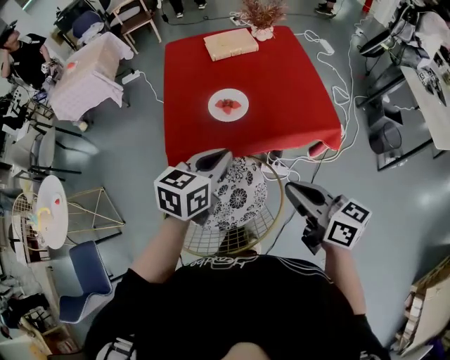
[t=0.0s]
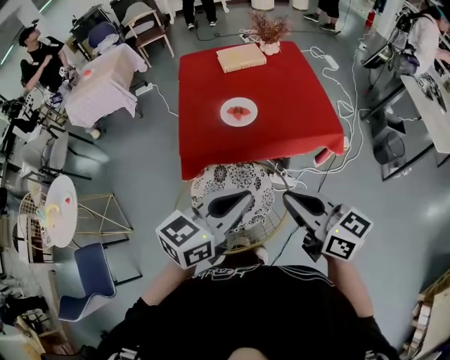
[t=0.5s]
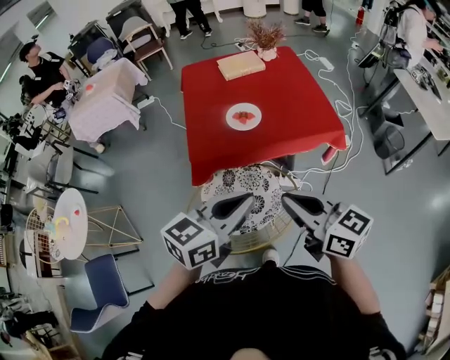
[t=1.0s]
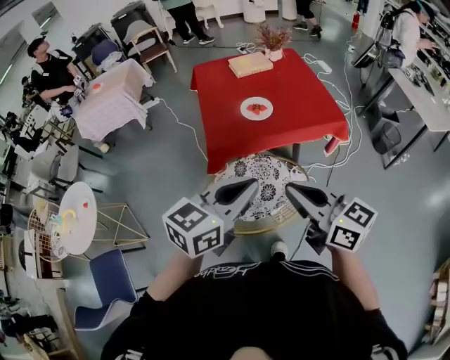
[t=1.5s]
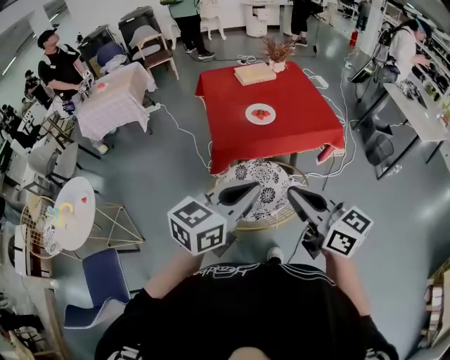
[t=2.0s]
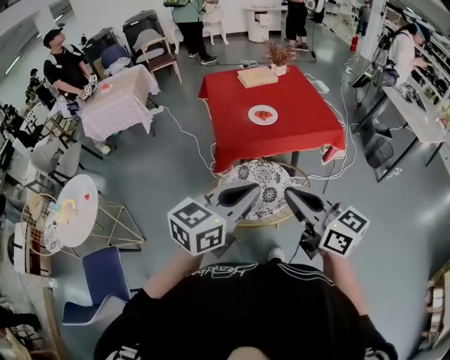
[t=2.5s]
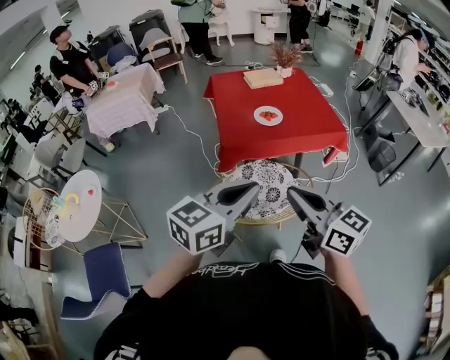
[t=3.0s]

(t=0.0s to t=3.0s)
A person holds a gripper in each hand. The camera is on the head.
t=0.0s - t=1.5s: The left gripper shifts some 25 cm backward and upward, while the right gripper shifts some 20 cm backward, to the left and upward.
t=1.5s - t=3.0s: Both grippers travel together backward, about 10 cm.

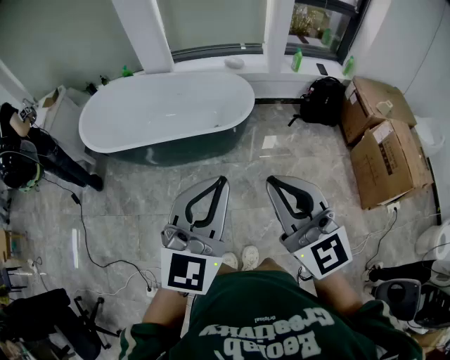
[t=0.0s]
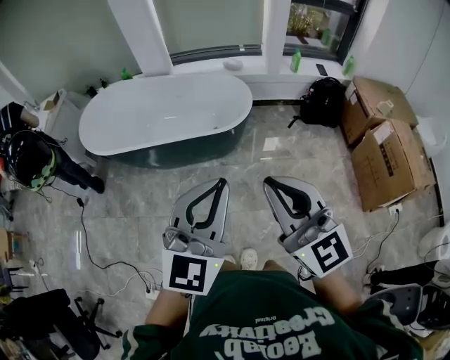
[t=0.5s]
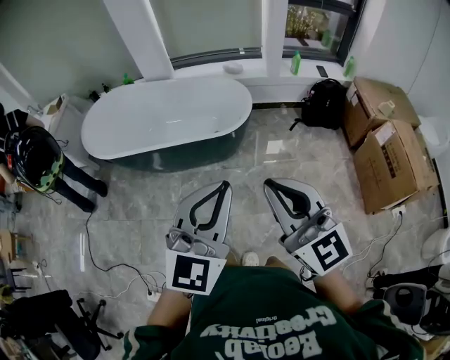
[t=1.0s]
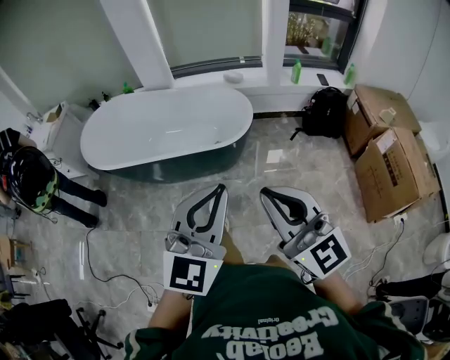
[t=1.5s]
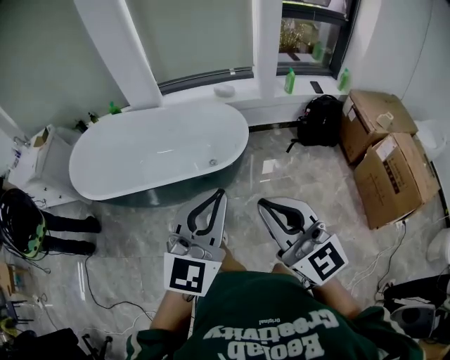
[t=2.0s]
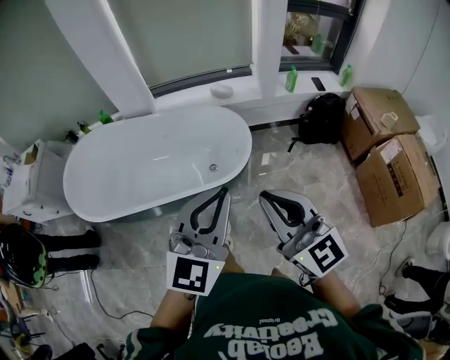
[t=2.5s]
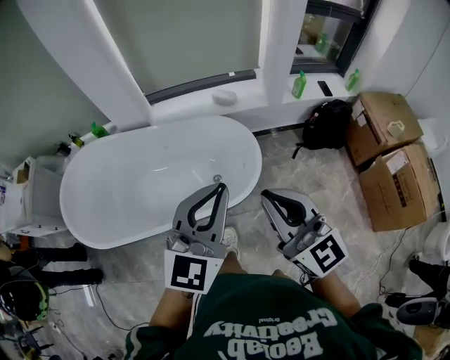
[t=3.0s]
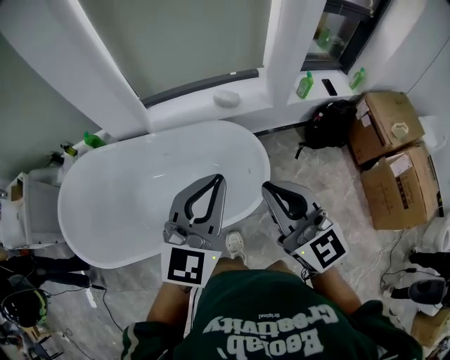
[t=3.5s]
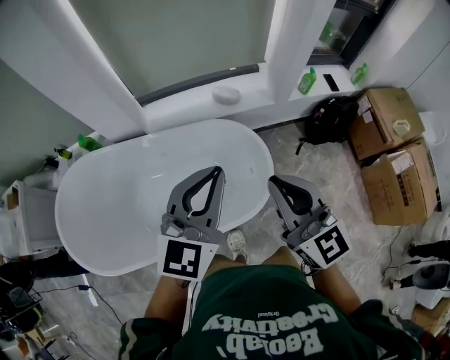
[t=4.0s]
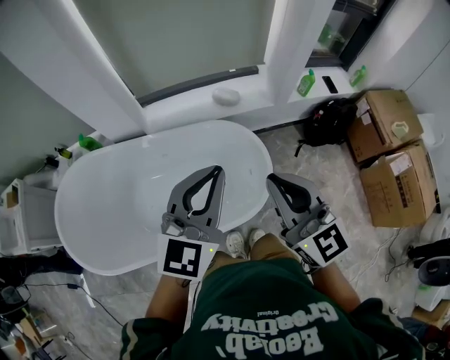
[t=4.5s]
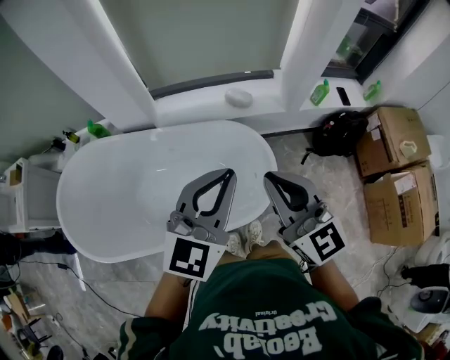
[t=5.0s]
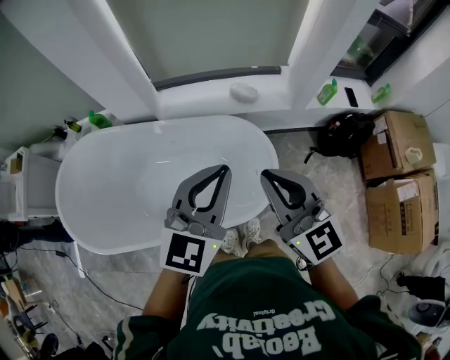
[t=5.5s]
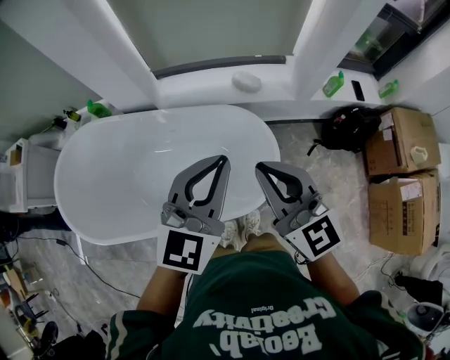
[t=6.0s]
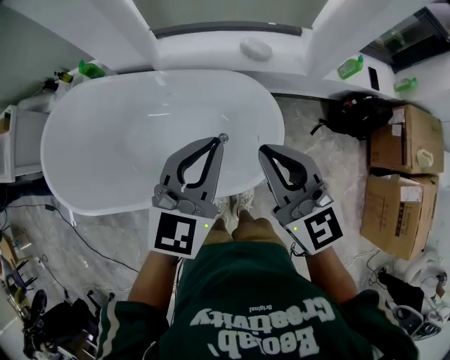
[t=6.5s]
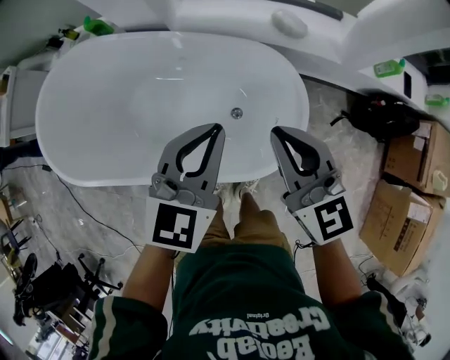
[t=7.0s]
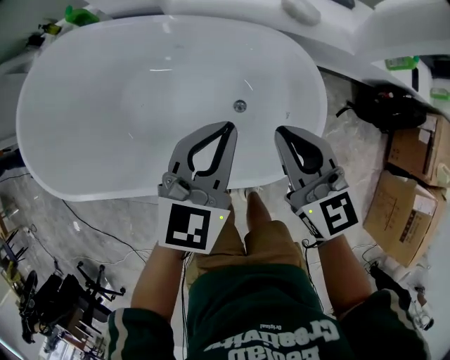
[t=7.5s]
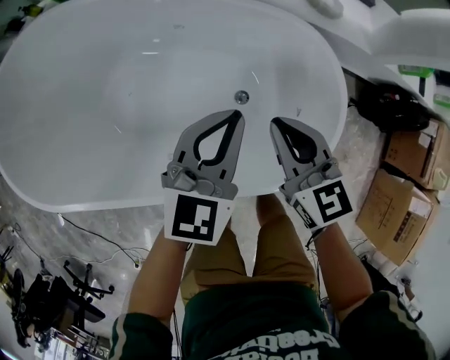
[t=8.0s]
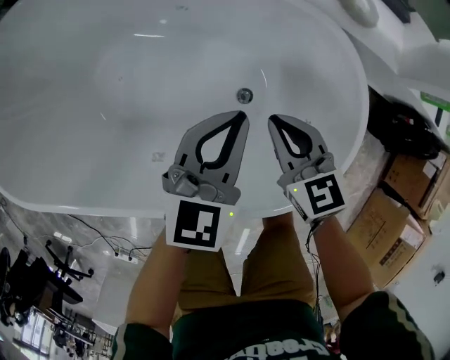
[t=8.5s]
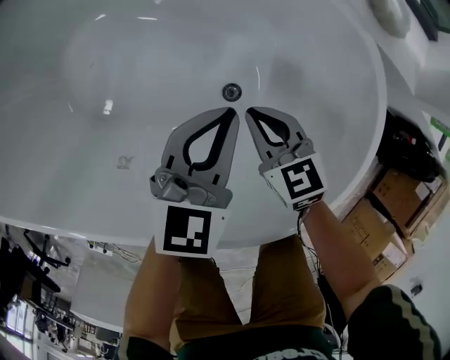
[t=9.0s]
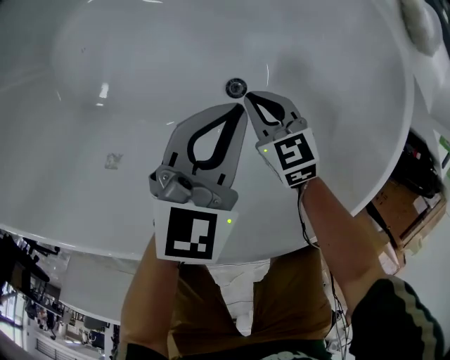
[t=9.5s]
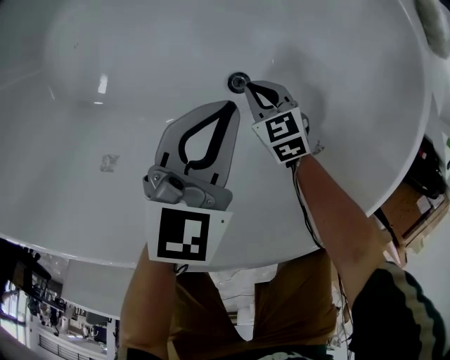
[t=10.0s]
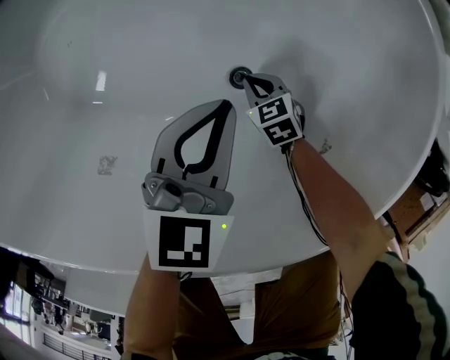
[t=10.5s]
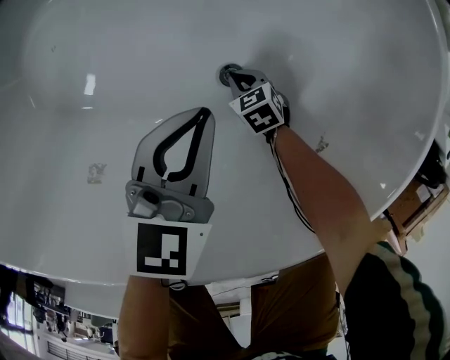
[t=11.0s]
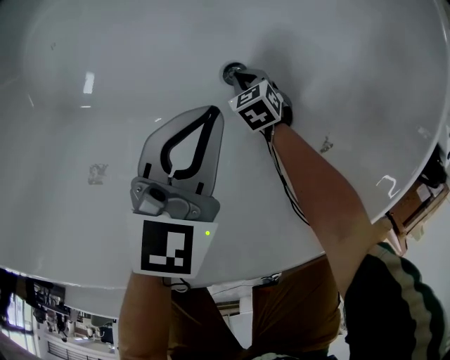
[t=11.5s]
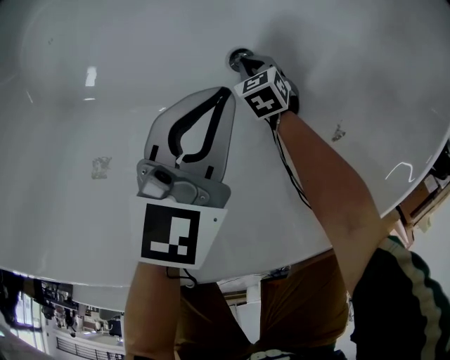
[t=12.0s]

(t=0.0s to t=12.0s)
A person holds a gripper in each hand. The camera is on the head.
t=0.0s - t=2.0s: Both grippers travel together forward and downward, roughly 15 cm.
t=2.0s - t=4.0s: The pair of grippers is taken forward, about 50 cm.
t=4.0s - t=6.0s: The right gripper goes about 5 cm forward.
t=6.0s - t=8.0s: The grippers both shift downward by about 35 cm. The right gripper changes its angle by roughly 30 degrees.
t=8.0s - t=10.0s: The right gripper is displaced downward by approximately 40 cm, and swivels roughly 40 degrees. Meanwhile the left gripper goes about 25 cm downward, and turns by about 20 degrees.
t=10.0s - t=12.0s: The right gripper travels downward by roughly 15 cm. Meanwhile the left gripper shifts roughly 5 cm downward.

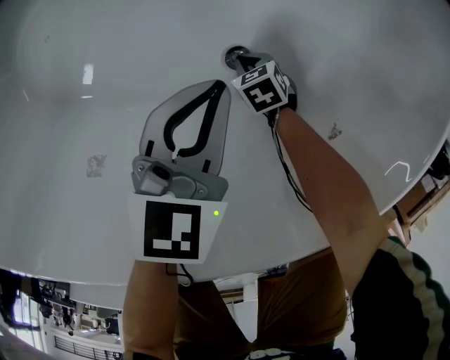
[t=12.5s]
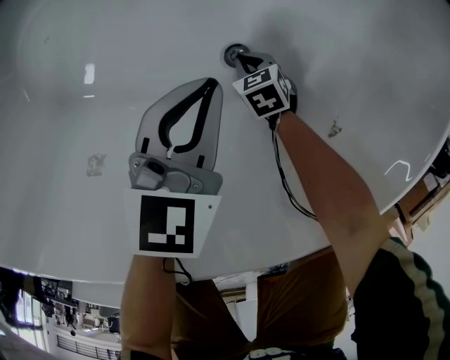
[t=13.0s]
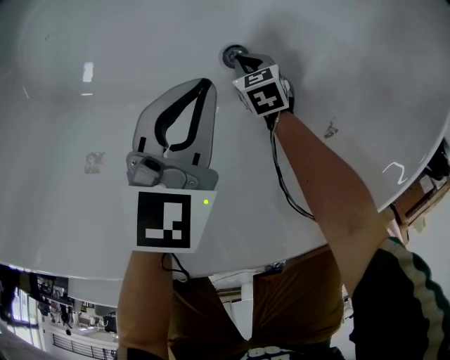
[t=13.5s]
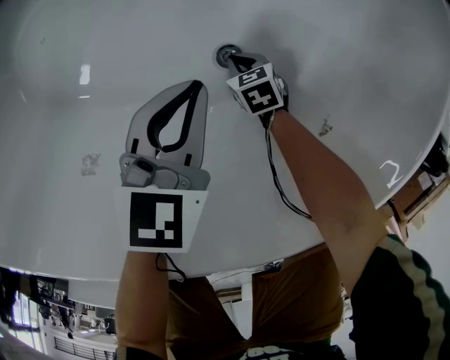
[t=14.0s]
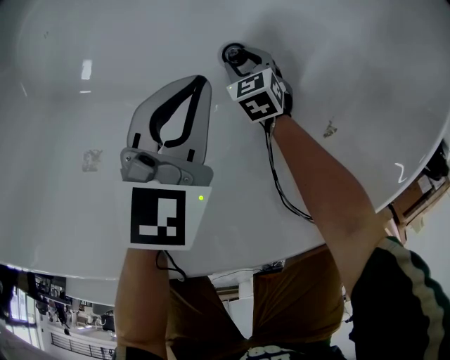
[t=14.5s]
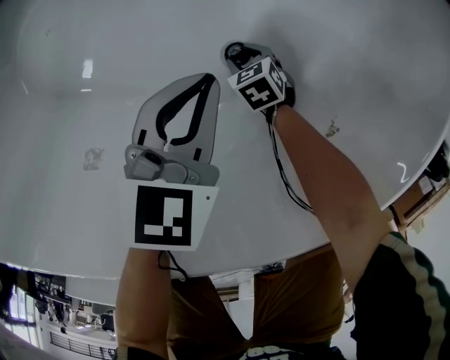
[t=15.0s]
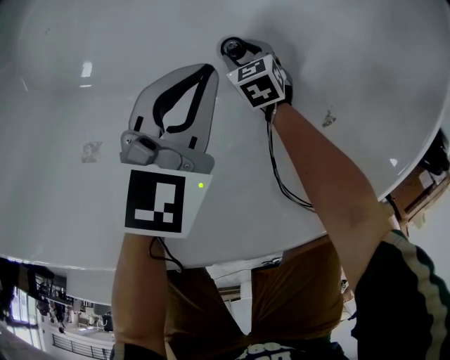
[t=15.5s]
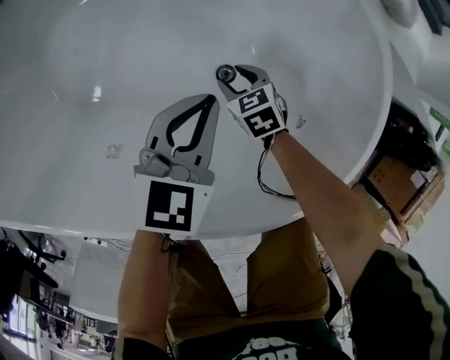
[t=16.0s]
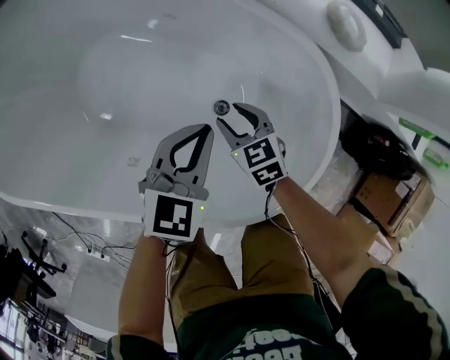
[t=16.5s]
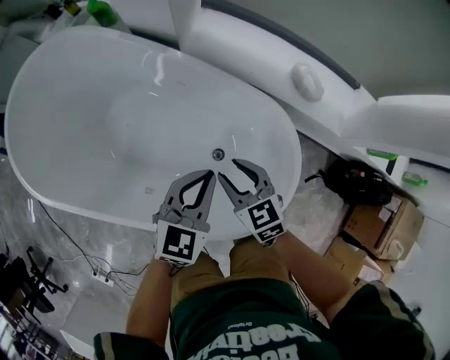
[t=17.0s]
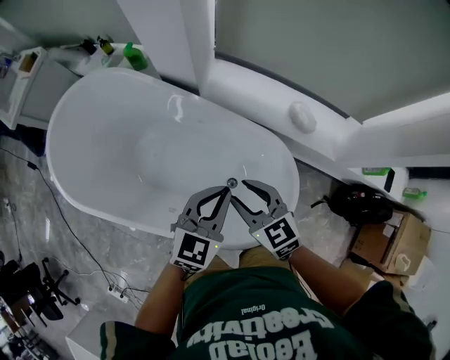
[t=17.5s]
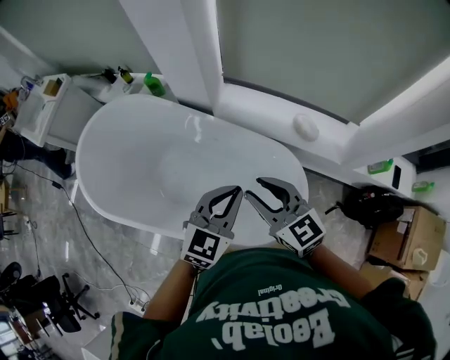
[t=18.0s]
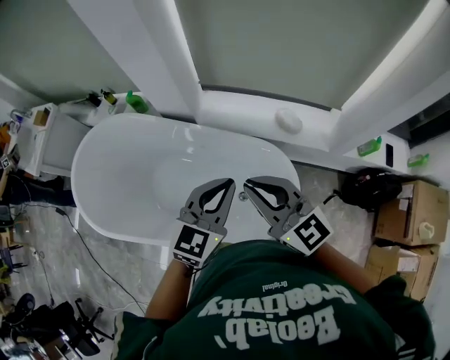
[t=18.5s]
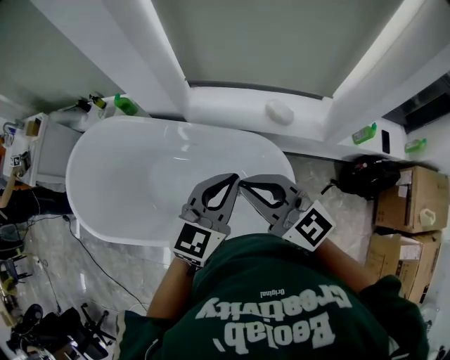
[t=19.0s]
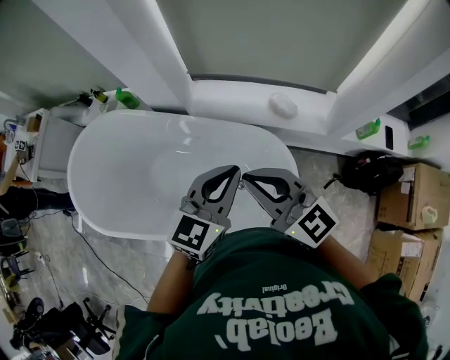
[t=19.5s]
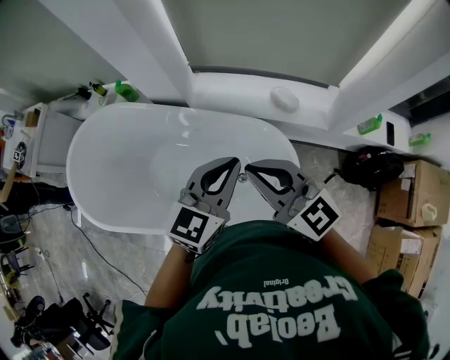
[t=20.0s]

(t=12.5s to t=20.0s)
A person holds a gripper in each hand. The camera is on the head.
t=12.5s - t=14.5s: The right gripper opens.
t=14.5s - t=16.5s: Both grippers travel together upward, some 30 cm. The right gripper turns by roughly 20 degrees.
t=16.5s - t=18.0s: The two grippers go about 50 cm upward. The right gripper points its fingers roughly 30 degrees further upward.
t=18.0s - t=20.0s: The left gripper is displaced to the right by some 5 cm; the right gripper travels upward by about 5 cm, and closes.

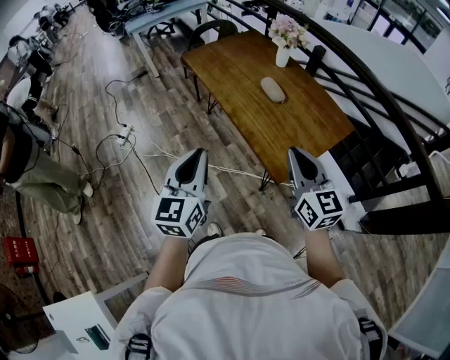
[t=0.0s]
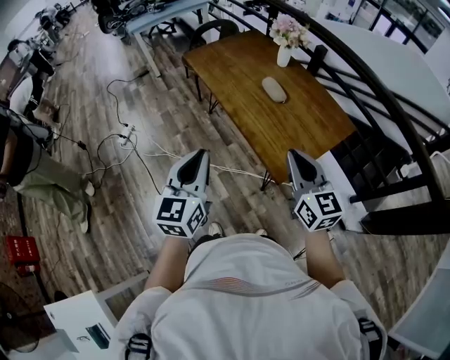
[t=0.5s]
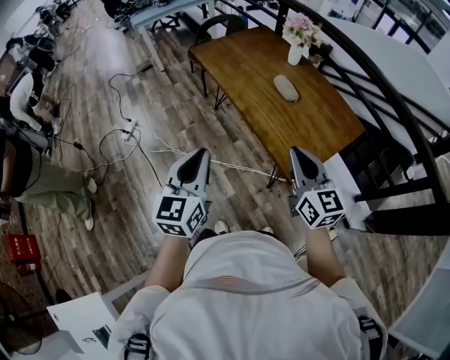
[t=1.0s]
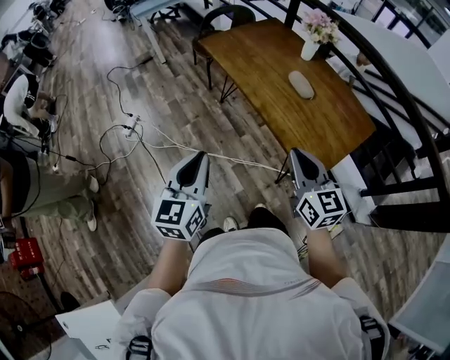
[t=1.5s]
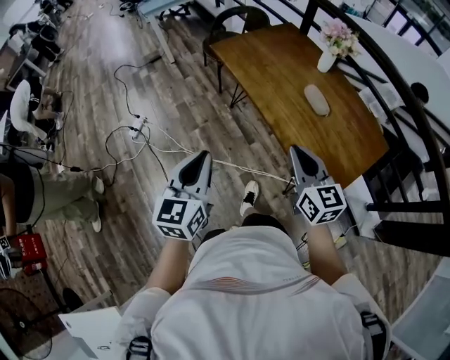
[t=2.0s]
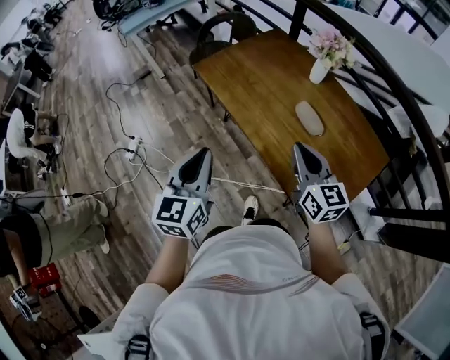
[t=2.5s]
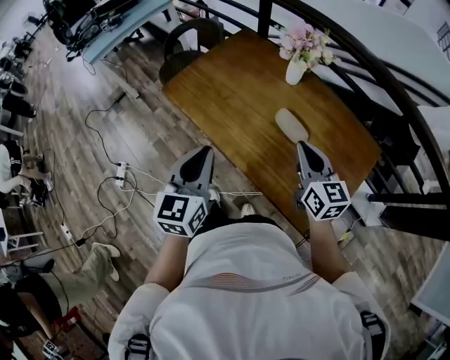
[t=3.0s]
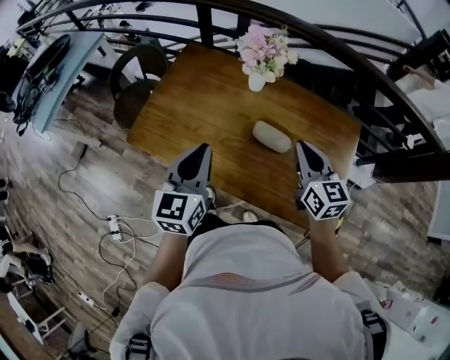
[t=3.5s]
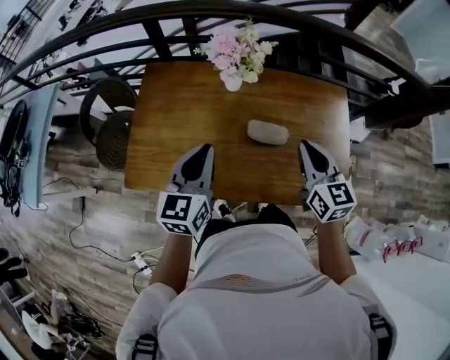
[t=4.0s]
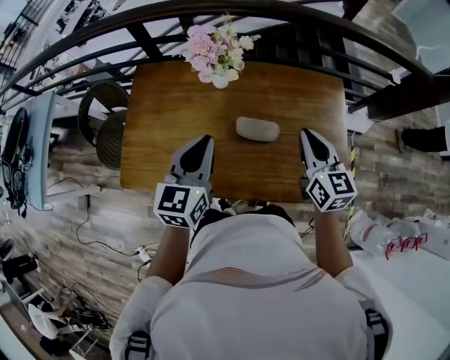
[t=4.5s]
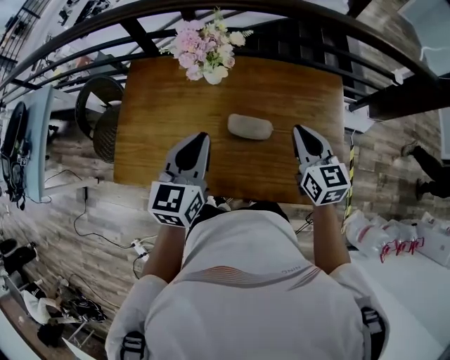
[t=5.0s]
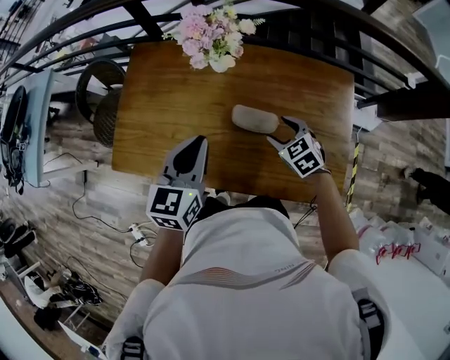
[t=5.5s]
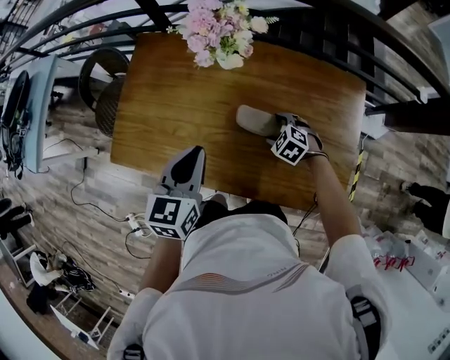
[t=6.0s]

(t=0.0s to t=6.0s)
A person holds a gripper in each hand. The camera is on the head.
t=0.0s - t=2.0s: The left gripper moves to the left and forward, roughly 20 cm. Meanwhile the right gripper goes approximately 20 cm to the left, forward and downward.
t=2.0s - t=4.0s: The right gripper ends up approximately 30 cm from where it was, and turns by approximately 60 degrees, while the left gripper ends up some 50 cm from where it was, and swivels some 50 degrees.
t=4.0s - t=6.0s: The right gripper moves downward, approximately 30 cm, angles its fingers downward, by some 50 degrees, and opens its fingers, while the left gripper shifts about 10 cm to the right and downward.
